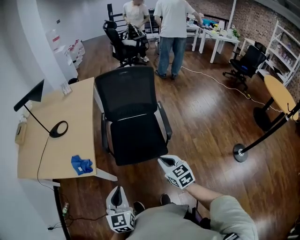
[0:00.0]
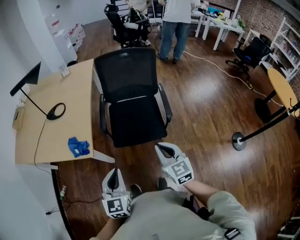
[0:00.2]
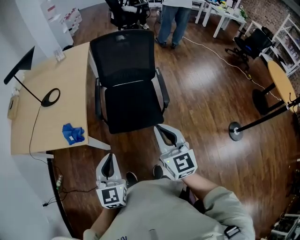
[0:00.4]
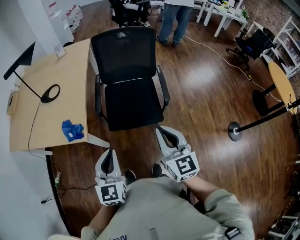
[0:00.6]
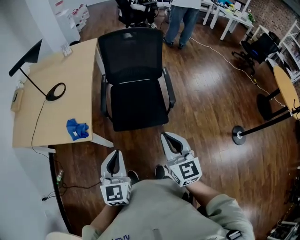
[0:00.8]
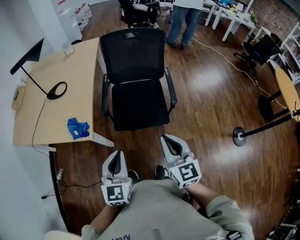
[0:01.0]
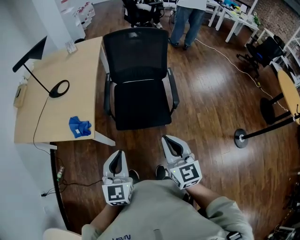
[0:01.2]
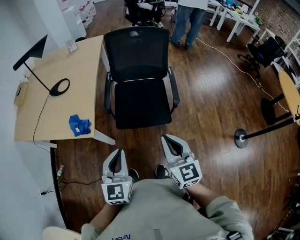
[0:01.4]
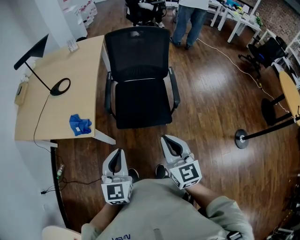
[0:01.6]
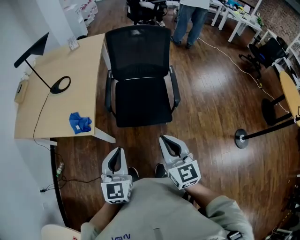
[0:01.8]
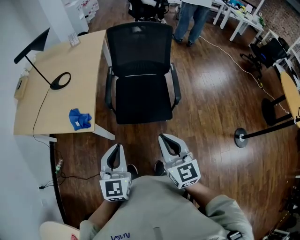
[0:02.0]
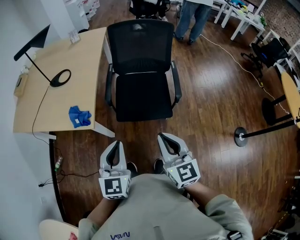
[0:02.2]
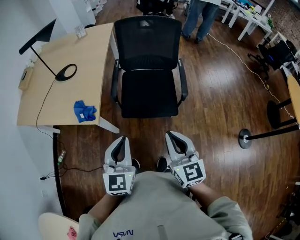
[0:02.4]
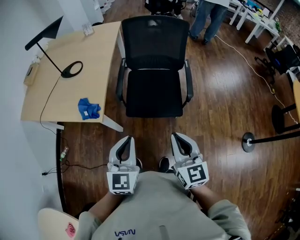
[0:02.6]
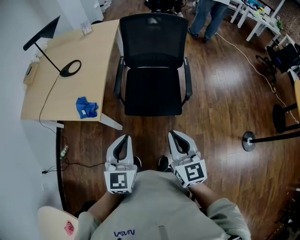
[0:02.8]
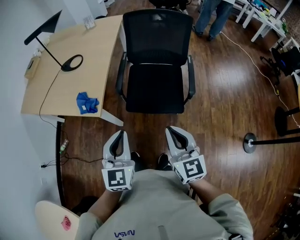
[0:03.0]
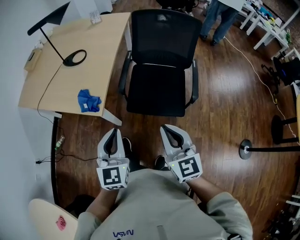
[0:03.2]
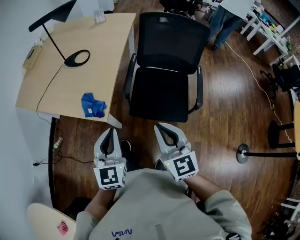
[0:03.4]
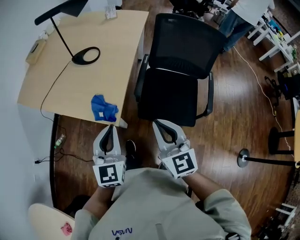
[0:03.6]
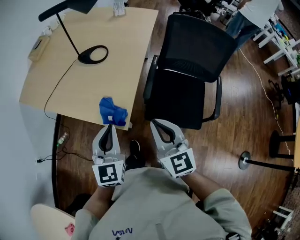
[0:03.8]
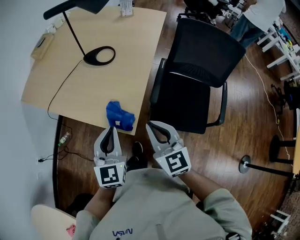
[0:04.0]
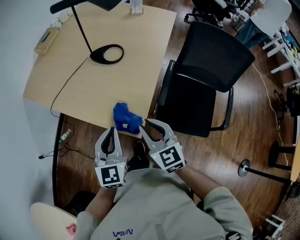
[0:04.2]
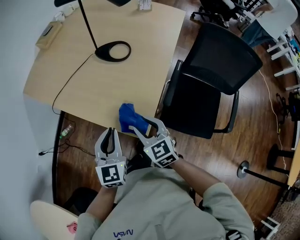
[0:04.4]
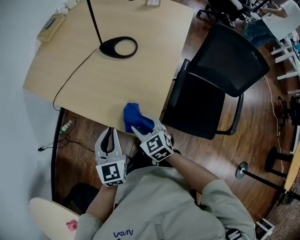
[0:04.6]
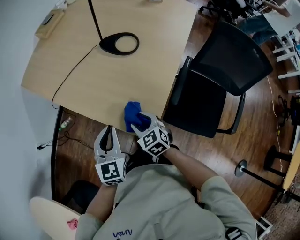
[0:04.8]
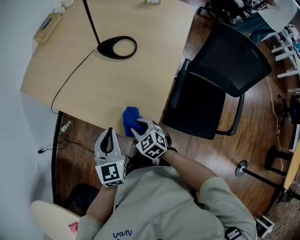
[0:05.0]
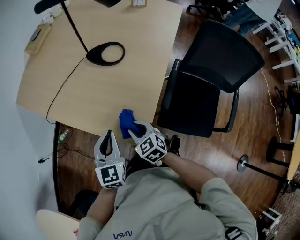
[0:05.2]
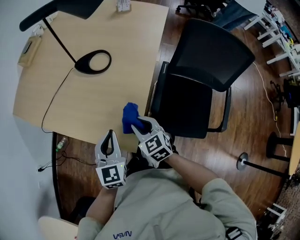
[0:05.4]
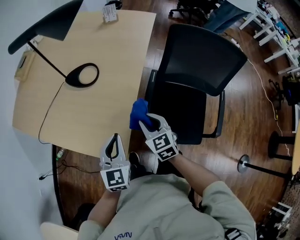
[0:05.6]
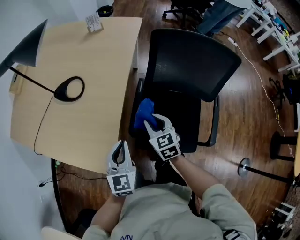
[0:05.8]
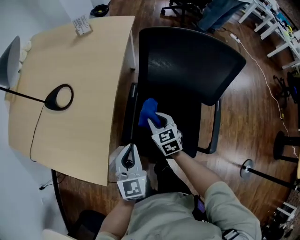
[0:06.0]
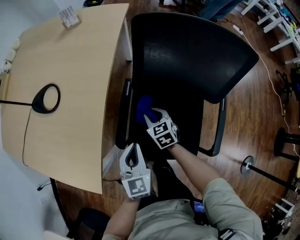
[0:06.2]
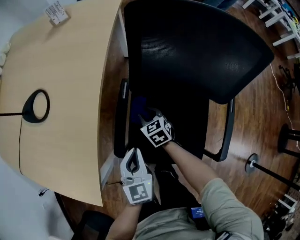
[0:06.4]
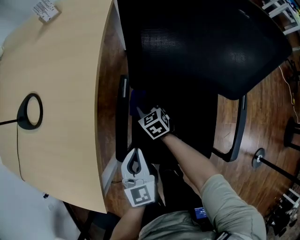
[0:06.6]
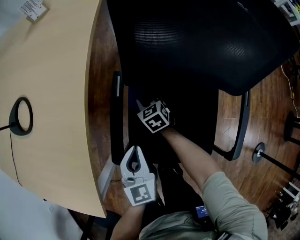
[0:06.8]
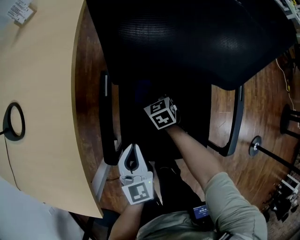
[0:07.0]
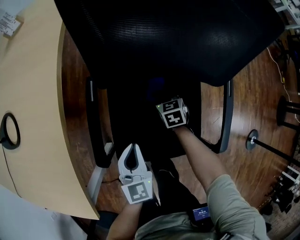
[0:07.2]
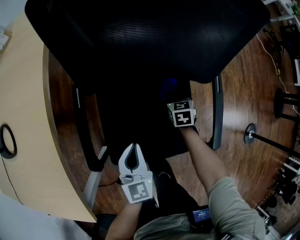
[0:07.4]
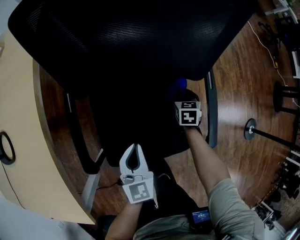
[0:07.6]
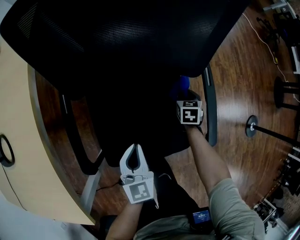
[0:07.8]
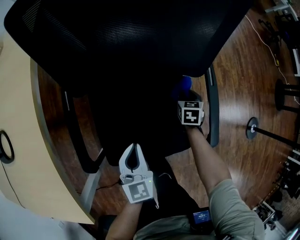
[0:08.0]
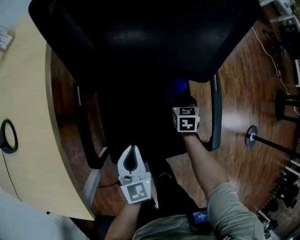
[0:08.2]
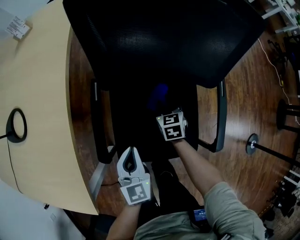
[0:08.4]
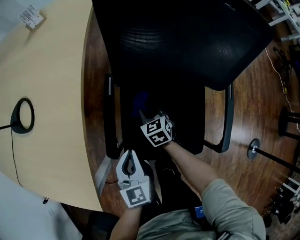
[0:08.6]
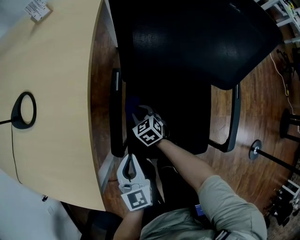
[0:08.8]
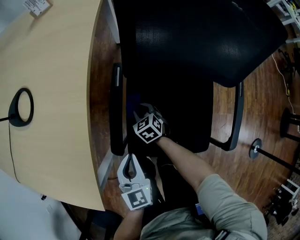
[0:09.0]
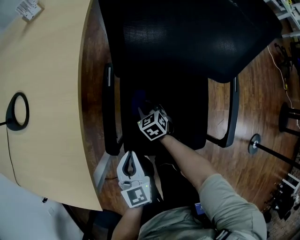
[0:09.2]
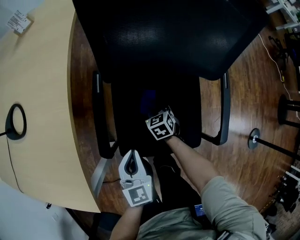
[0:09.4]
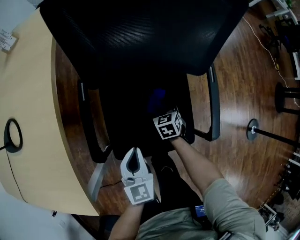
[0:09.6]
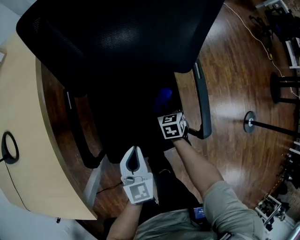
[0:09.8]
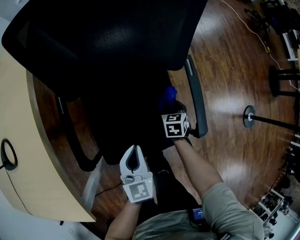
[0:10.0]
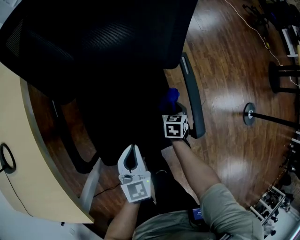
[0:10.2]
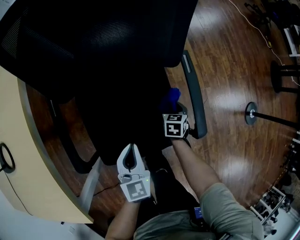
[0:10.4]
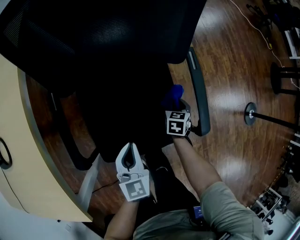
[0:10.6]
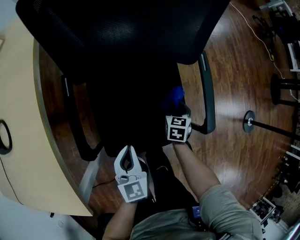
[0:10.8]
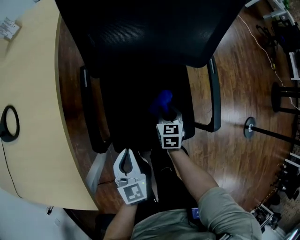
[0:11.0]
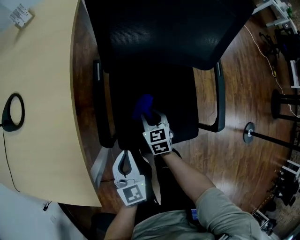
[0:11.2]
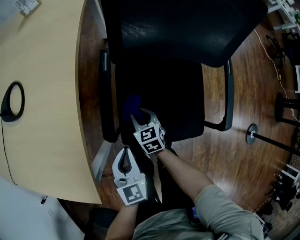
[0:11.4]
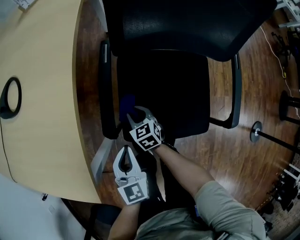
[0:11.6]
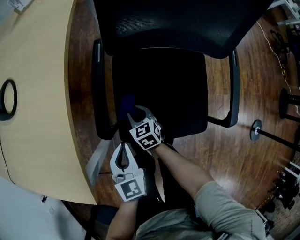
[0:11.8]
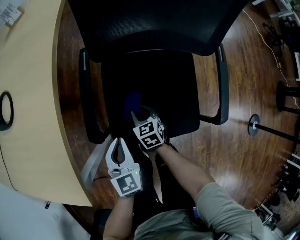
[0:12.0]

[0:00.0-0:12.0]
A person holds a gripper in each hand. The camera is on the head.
0:00.0 to 0:01.6: The right gripper shifts roughly 10 cm upward and backward, and turns by some 20 degrees.
0:01.6 to 0:03.0: The grippers make only small movements.
0:03.0 to 0:04.4: The right gripper moves forward and to the left, about 50 cm, changes its angle by approximately 40 degrees, and opens up. The left gripper heads to the left and forward, covering about 40 cm, and turns by some 20 degrees.
0:04.4 to 0:06.0: Both grippers move to the right, about 40 cm. The right gripper changes its angle by roughly 20 degrees.
0:06.0 to 0:07.6: The left gripper shifts roughly 20 cm downward, and changes its angle by approximately 20 degrees, while the right gripper changes place by some 40 cm, and swivels approximately 40 degrees.
0:07.6 to 0:09.0: The right gripper ends up approximately 40 cm from where it was, and turns by approximately 40 degrees; the left gripper moves roughly 20 cm.
0:09.0 to 0:10.4: The left gripper shifts by approximately 20 cm, and swivels about 20 degrees. Meanwhile the right gripper ends up some 40 cm from where it was, and swivels about 60 degrees.
0:10.4 to 0:12.0: The right gripper goes upward and returns, roughly 10 cm each way, and swivels roughly 40 degrees. Meanwhile the left gripper moves approximately 20 cm.

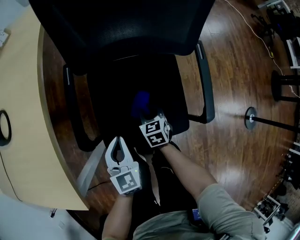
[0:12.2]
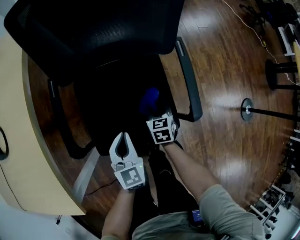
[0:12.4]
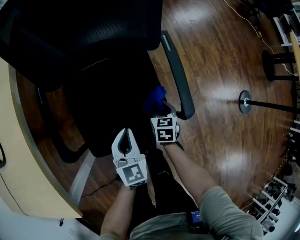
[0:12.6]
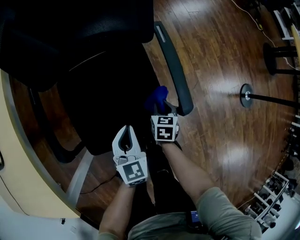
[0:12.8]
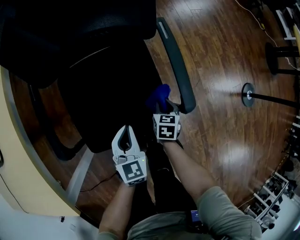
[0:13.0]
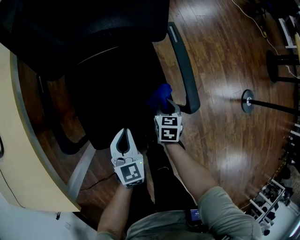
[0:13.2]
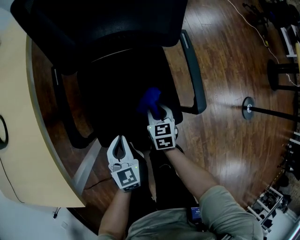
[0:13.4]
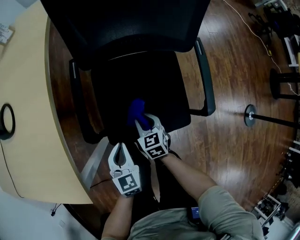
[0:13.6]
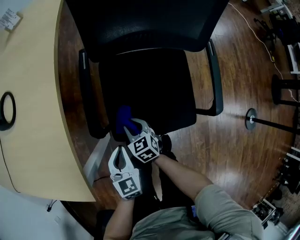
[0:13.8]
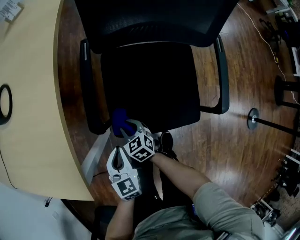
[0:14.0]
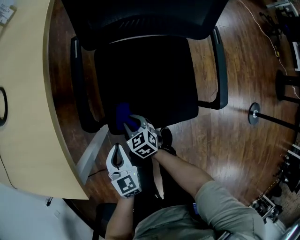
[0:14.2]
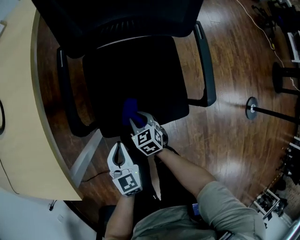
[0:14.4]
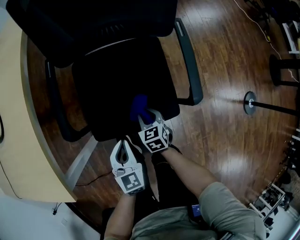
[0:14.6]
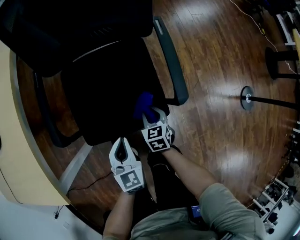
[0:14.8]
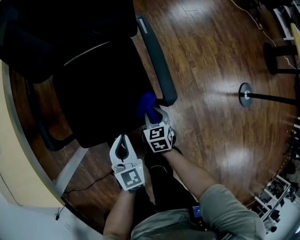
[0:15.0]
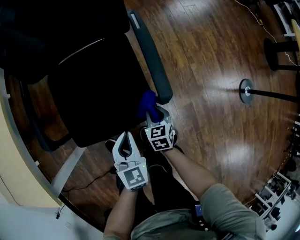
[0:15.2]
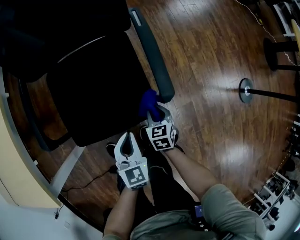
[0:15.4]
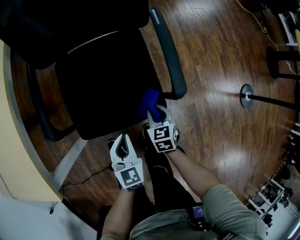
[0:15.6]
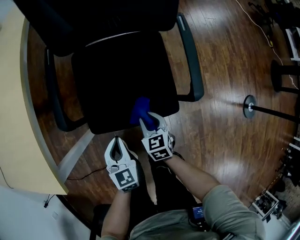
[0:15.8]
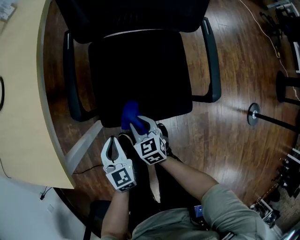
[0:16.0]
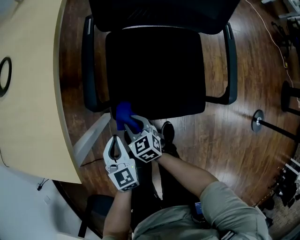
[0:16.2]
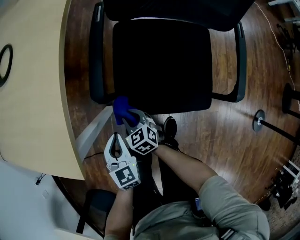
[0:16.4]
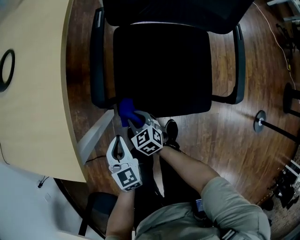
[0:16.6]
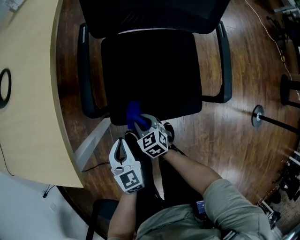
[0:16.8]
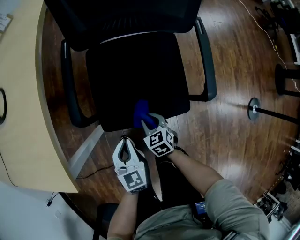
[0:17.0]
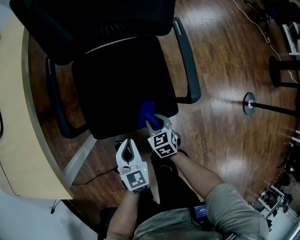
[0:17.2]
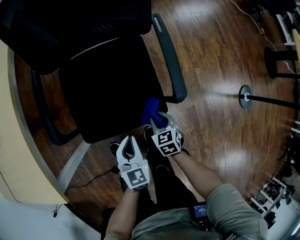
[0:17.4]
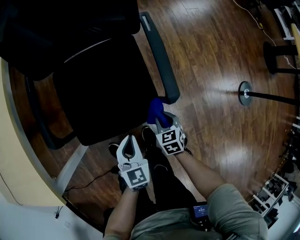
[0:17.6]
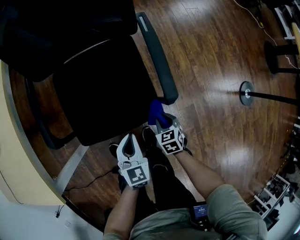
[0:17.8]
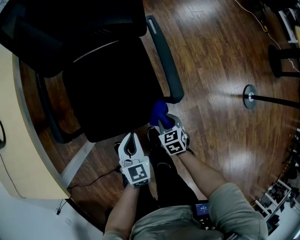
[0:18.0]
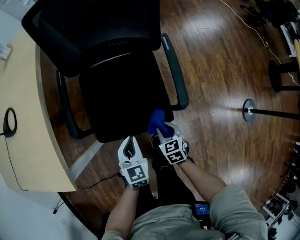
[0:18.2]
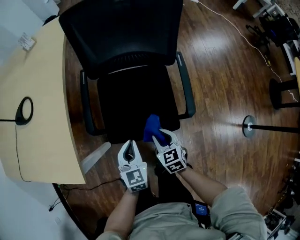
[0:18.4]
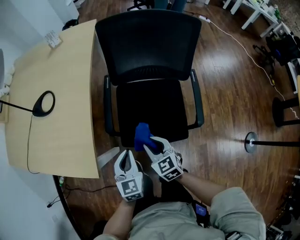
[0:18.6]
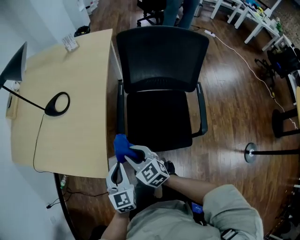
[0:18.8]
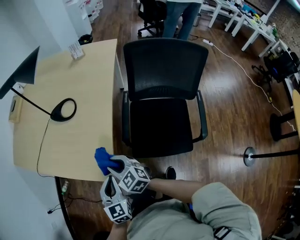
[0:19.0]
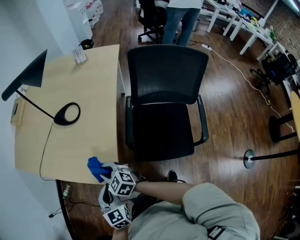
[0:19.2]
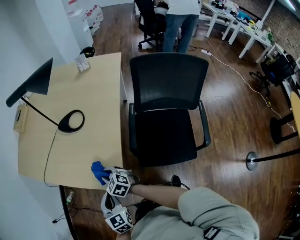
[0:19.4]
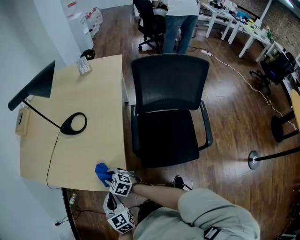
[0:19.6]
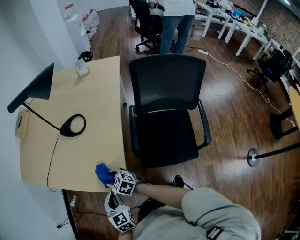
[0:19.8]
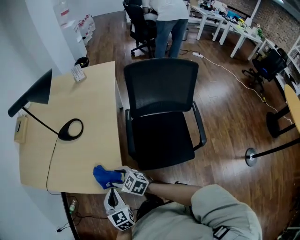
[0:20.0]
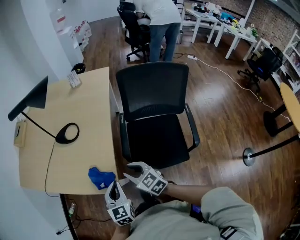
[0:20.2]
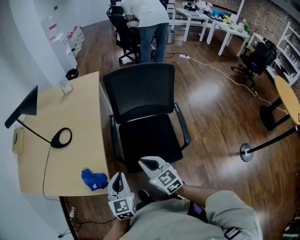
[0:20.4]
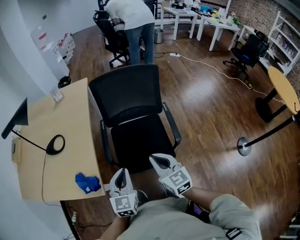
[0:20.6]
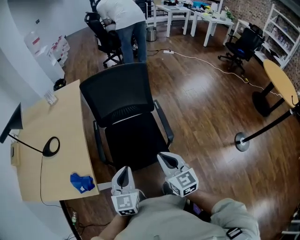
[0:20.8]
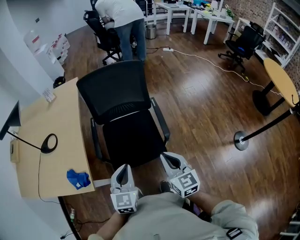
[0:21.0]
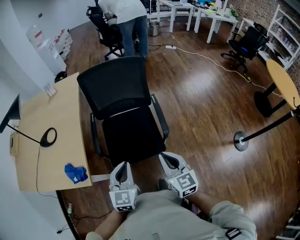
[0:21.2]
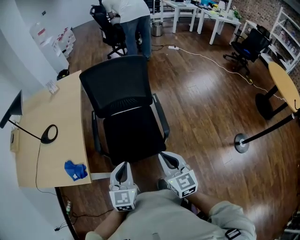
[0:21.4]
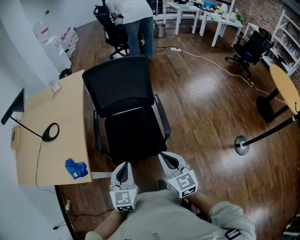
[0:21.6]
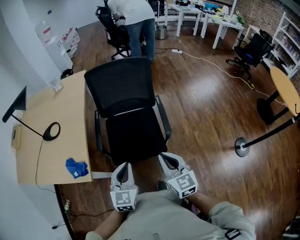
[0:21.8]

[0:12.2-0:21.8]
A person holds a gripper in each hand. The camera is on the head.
0:12.2 to 0:13.8: The right gripper reaches some 5 cm upward, then returns. The left gripper changes place by about 10 cm.
0:13.8 to 0:15.4: The right gripper shifts by approximately 40 cm, and rotates roughly 30 degrees, while the left gripper ends up some 30 cm from where it was.
0:15.4 to 0:17.0: The right gripper rotates some 20 degrees.
0:17.0 to 0:18.6: The grippers both shift upward by about 25 cm. The right gripper changes its angle by about 20 degrees.
0:18.6 to 0:20.2: The left gripper ends up approximately 20 cm from where it was; the right gripper moves up and down over some 15 cm, changing direction 2 times, and opens, then closes once more.
0:20.2 to 0:21.8: The left gripper changes place by about 30 cm, and turns by approximately 20 degrees. Meanwhile the right gripper ends up about 40 cm from where it was, swivels about 40 degrees, and closes up.

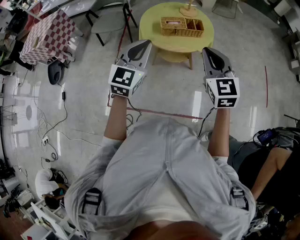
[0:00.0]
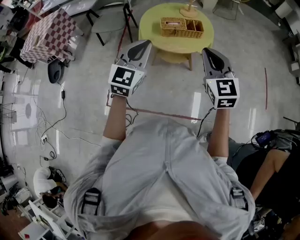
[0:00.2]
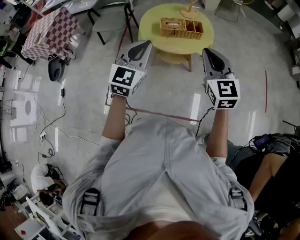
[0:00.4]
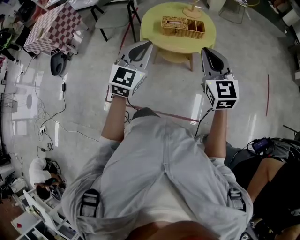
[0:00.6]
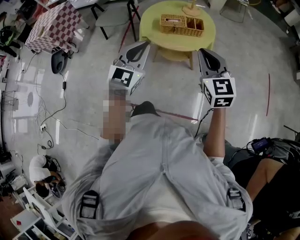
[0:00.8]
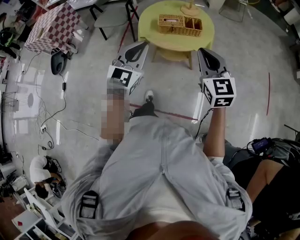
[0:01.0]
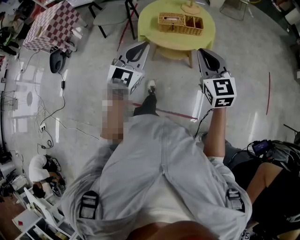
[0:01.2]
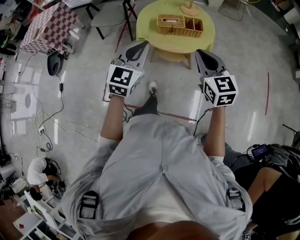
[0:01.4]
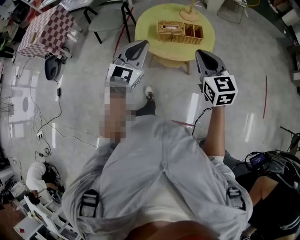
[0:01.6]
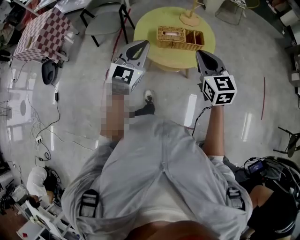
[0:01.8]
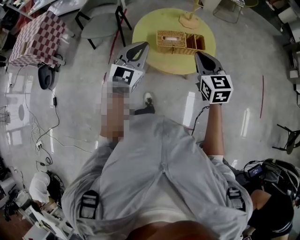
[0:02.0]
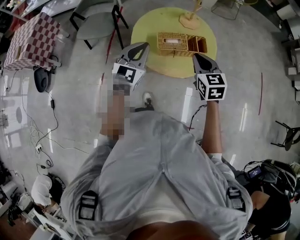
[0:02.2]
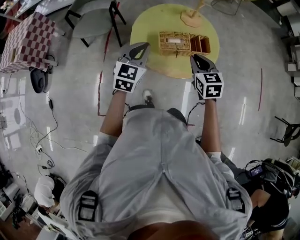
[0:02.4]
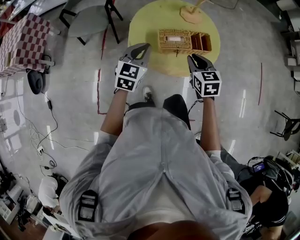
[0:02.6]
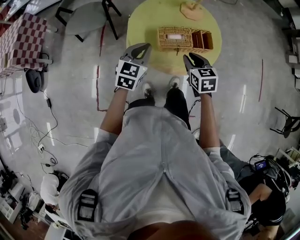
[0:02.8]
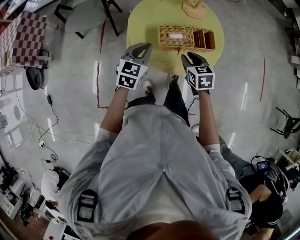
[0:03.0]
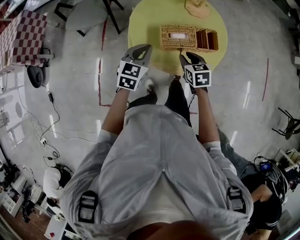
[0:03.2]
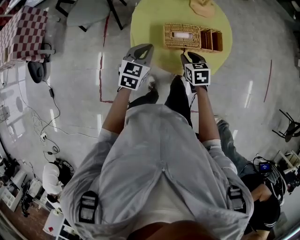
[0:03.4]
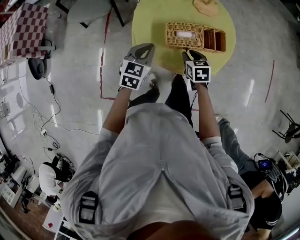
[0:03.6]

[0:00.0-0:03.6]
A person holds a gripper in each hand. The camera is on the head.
0:00.0 to 0:01.8: The grippers both shift forward by roughly 15 cm.
0:01.8 to 0:03.6: The grippers both shift downward and forward by roughly 35 cm. The left gripper changes its angle by roughly 30 degrees; the right gripper tips its fingers downward by some 40 degrees, and opens up.
